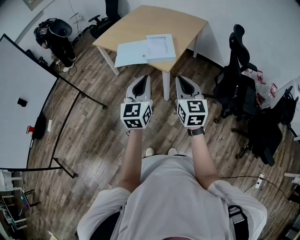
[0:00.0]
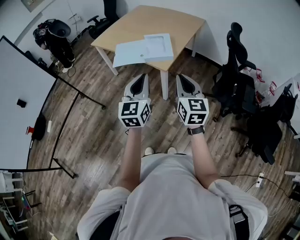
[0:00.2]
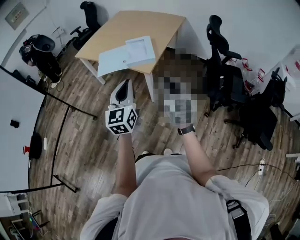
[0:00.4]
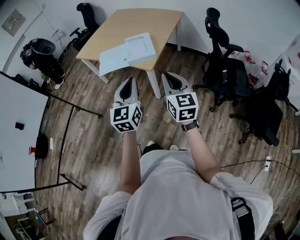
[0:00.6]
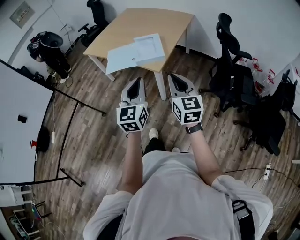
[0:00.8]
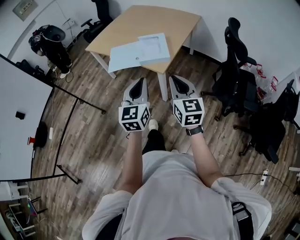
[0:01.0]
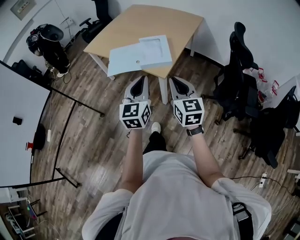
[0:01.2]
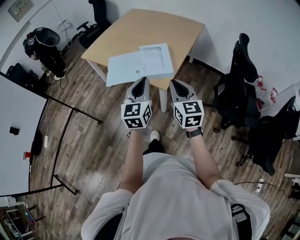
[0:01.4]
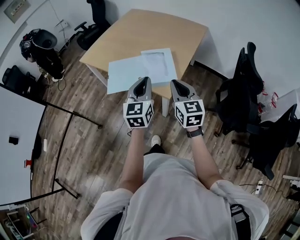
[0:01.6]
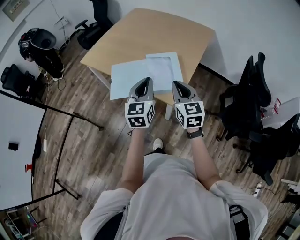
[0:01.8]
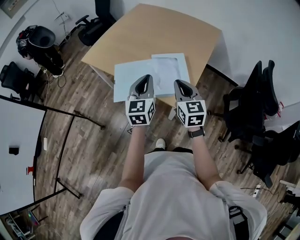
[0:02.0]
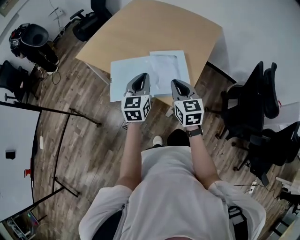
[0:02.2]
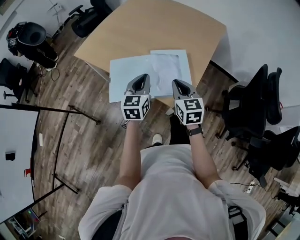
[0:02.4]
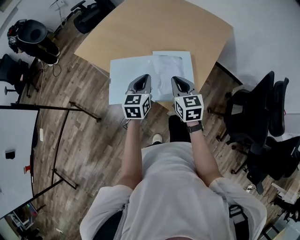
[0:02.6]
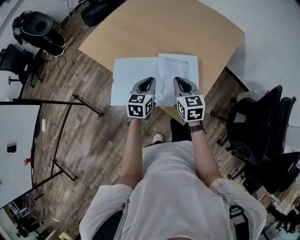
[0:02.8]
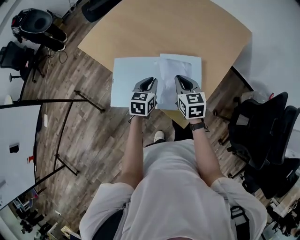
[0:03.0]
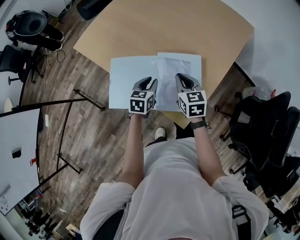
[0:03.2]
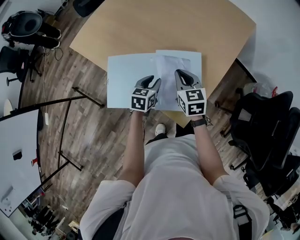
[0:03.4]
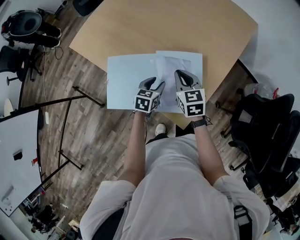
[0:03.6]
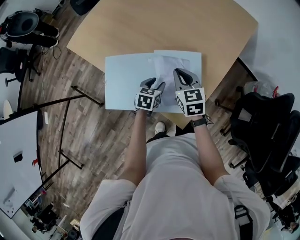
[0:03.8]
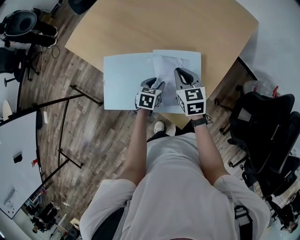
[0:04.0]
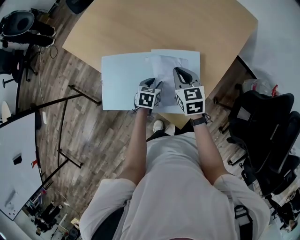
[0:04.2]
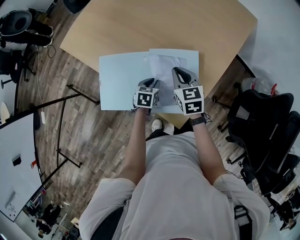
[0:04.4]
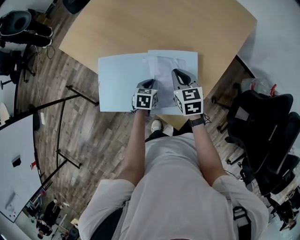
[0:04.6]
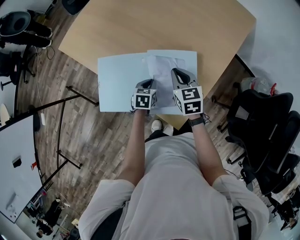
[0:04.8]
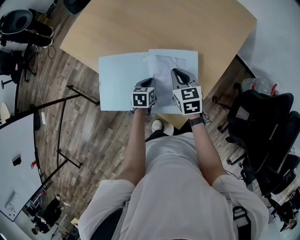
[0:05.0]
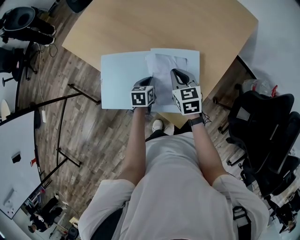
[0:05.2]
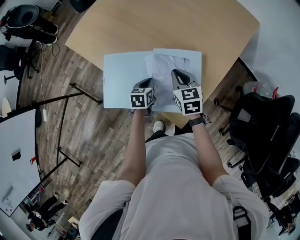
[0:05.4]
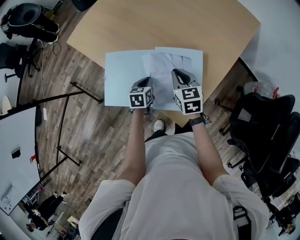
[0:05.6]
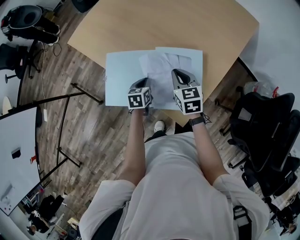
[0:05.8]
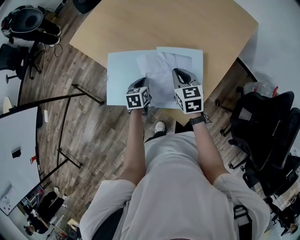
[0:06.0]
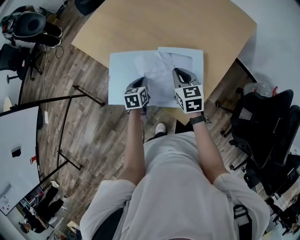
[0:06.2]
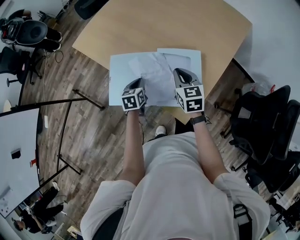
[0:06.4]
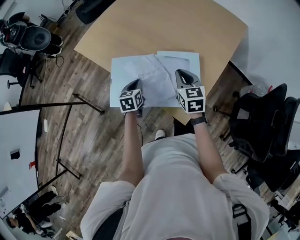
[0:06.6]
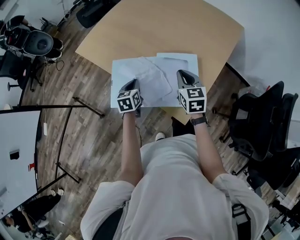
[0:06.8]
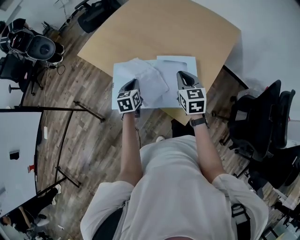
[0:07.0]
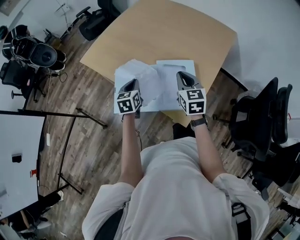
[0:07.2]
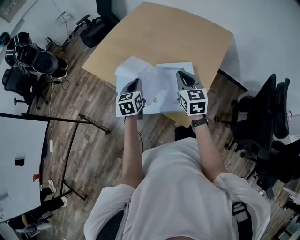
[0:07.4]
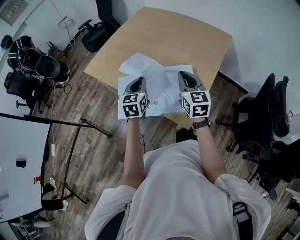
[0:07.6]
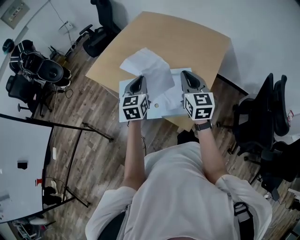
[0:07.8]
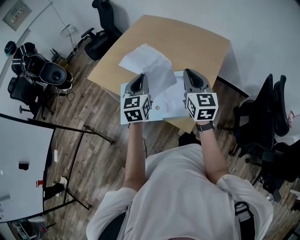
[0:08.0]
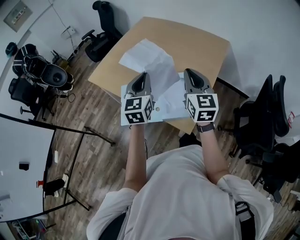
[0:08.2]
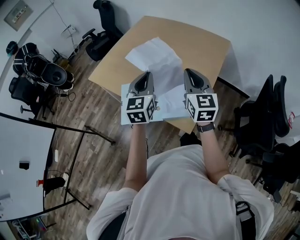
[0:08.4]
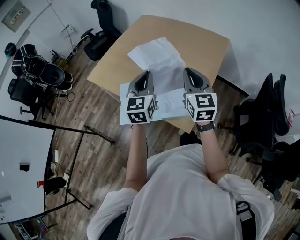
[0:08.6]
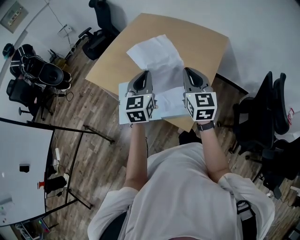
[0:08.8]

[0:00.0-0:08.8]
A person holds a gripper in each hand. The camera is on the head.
0:00.0 to 0:01.4: The two grippers go about 20 cm forward.
0:01.4 to 0:03.0: The grippers both shift forward and downward by approximately 40 cm. The left gripper angles its fingers downward, by about 30 degrees. Meanwhile the right gripper rotates roughly 20 degrees.
0:03.0 to 0:04.4: The right gripper shifts about 10 cm forward and downward, while the left gripper travels downward by approximately 15 cm, and changes its angle by some 20 degrees.
0:04.4 to 0:05.8: The left gripper shifts some 5 cm to the left, and closes its fingers.
0:05.8 to 0:07.4: The left gripper moves upward, some 20 cm, and changes its angle by about 30 degrees, while the right gripper is displaced upward and backward by about 15 cm, and swivels roughly 20 degrees.
0:07.4 to 0:08.8: The left gripper is displaced upward and to the right by roughly 15 cm, and rotates roughly 20 degrees. Meanwhile the right gripper goes approximately 10 cm upward.

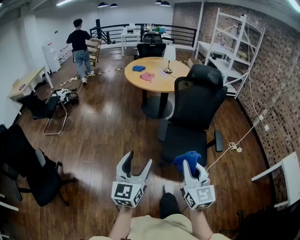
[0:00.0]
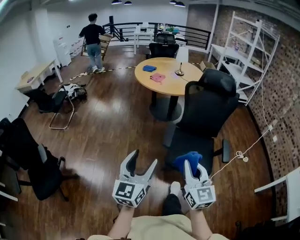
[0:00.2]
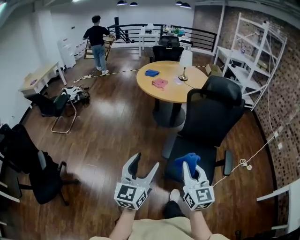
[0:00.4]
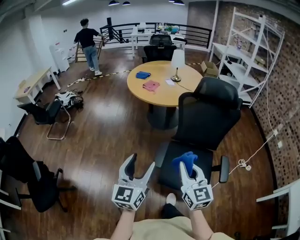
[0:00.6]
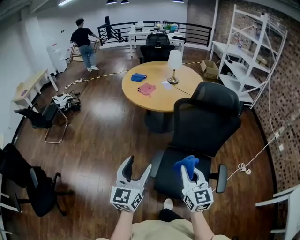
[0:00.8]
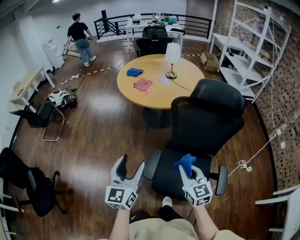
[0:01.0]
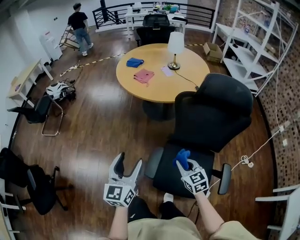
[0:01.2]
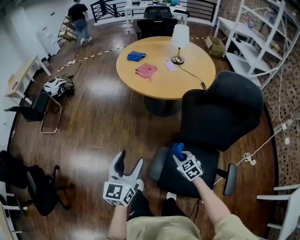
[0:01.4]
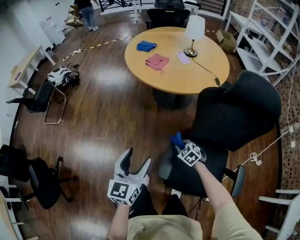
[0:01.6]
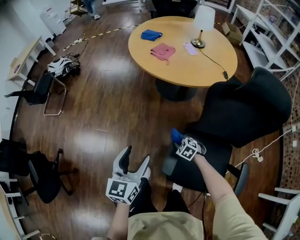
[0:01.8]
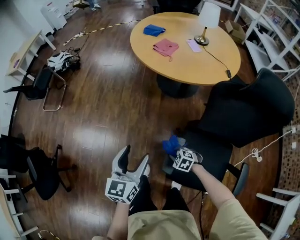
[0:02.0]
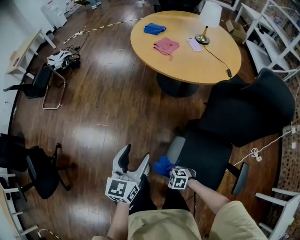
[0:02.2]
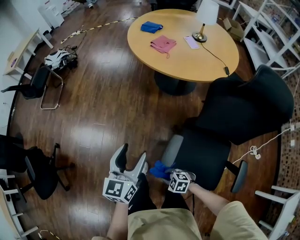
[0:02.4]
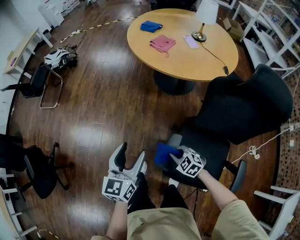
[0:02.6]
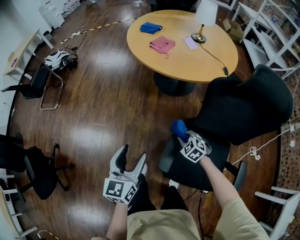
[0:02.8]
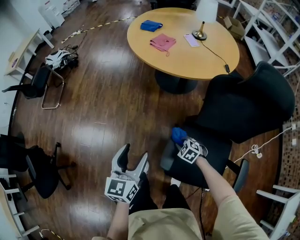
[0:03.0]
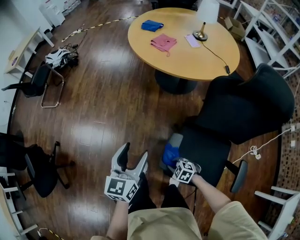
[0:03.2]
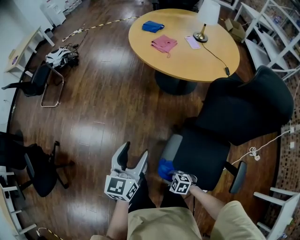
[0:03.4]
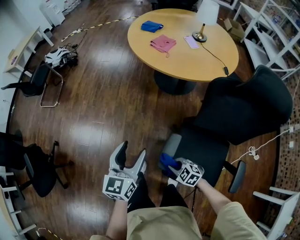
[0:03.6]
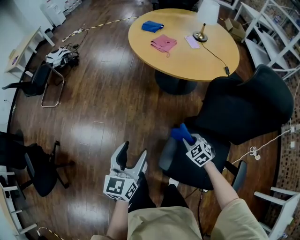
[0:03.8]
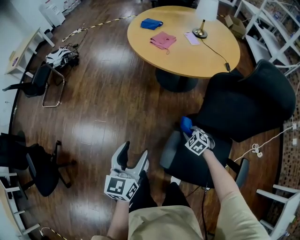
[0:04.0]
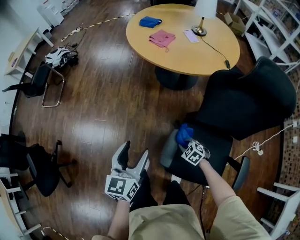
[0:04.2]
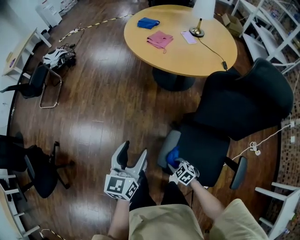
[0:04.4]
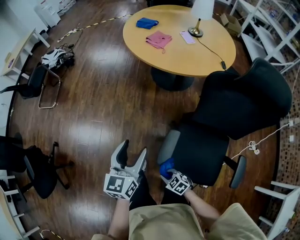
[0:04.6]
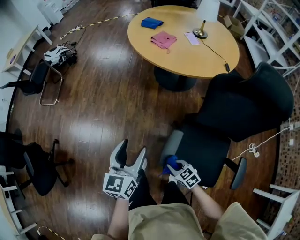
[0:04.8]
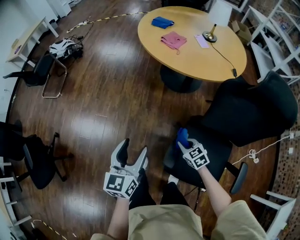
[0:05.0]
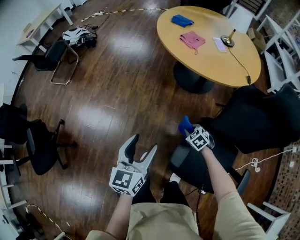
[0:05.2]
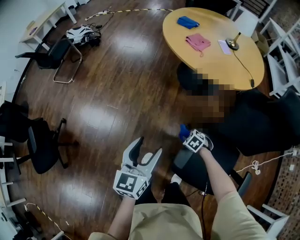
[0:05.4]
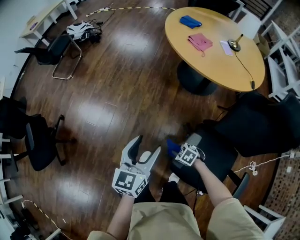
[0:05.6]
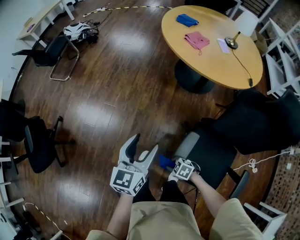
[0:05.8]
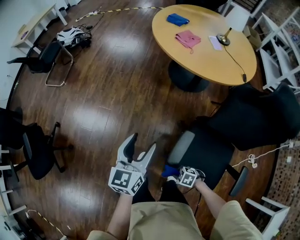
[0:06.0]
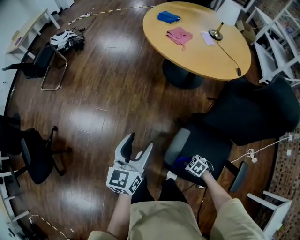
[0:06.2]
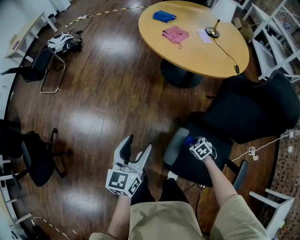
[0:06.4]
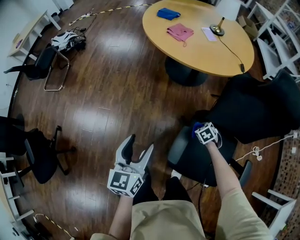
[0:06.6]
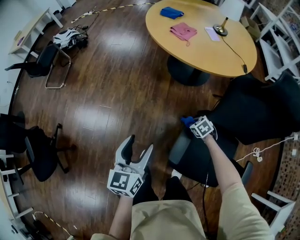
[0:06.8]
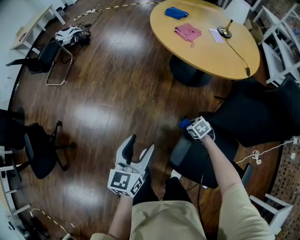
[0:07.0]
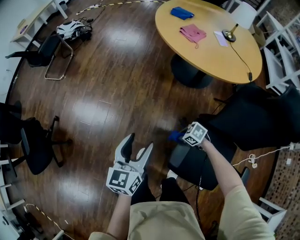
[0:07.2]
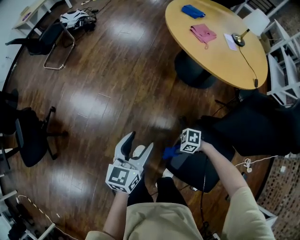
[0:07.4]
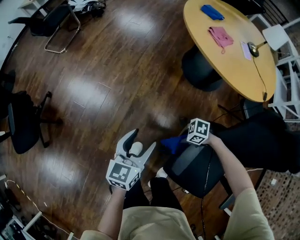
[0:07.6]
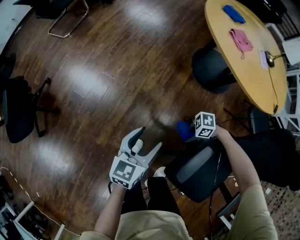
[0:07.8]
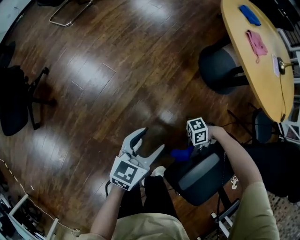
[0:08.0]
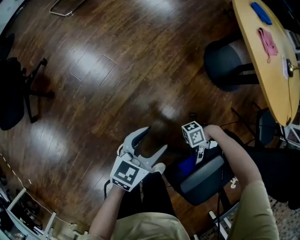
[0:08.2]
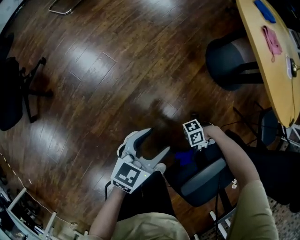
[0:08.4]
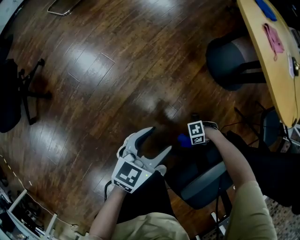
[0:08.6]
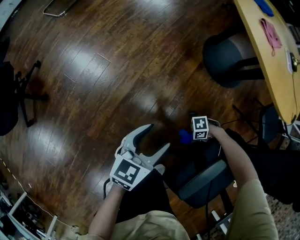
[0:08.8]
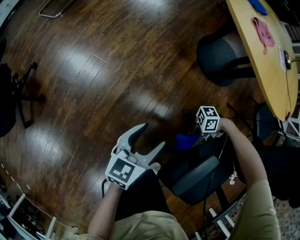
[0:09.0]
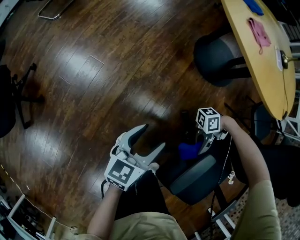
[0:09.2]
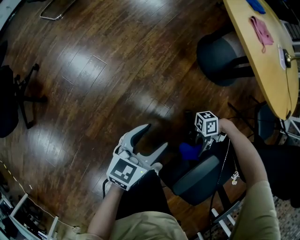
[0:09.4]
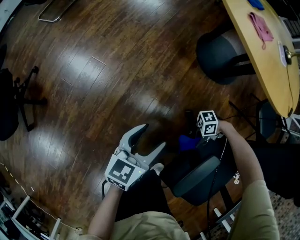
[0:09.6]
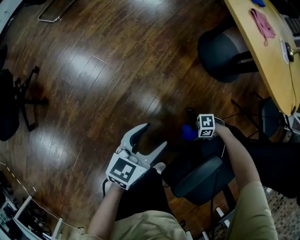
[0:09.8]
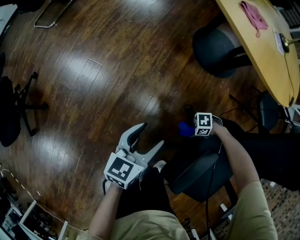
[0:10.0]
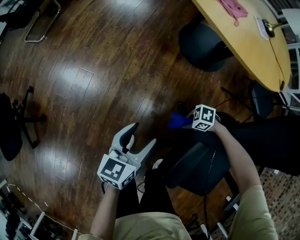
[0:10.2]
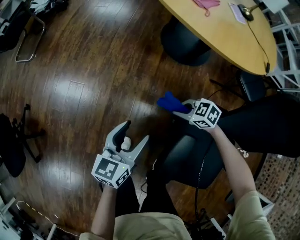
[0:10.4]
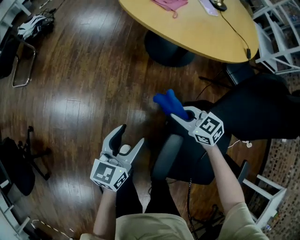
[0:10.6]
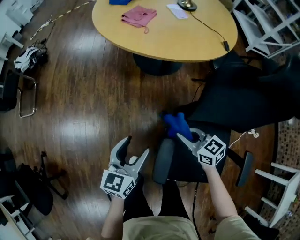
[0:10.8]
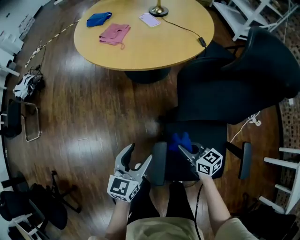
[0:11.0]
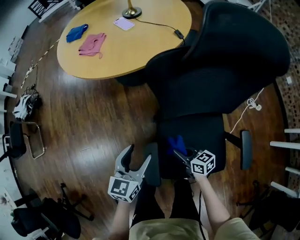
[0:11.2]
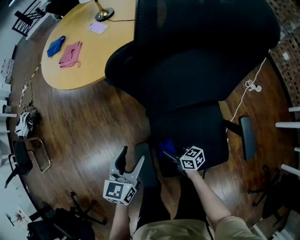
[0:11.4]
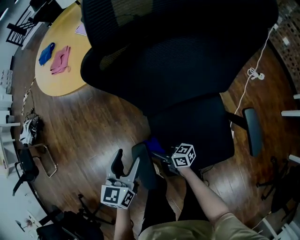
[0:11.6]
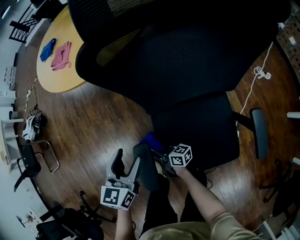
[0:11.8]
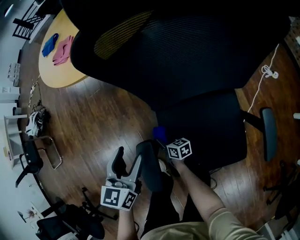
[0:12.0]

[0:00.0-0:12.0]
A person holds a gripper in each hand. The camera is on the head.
0:00.0 to 0:01.6: The pair of grippers is taken forward, about 50 cm. The right gripper goes about 40 cm downward, and points its fingers approximately 50 degrees further downward.
0:01.6 to 0:03.0: The left gripper changes place by roughly 5 cm, while the right gripper moves up and down over roughly 10 cm, changing direction 2 times.
0:03.0 to 0:04.4: The right gripper reaches about 10 cm upward, then returns.
0:04.4 to 0:06.0: The right gripper moves about 10 cm upward and comes back, and changes its angle by some 30 degrees; the left gripper changes place by roughly 5 cm.
0:06.0 to 0:07.6: The right gripper changes its angle by roughly 20 degrees; the left gripper goes about 10 cm downward.
0:07.6 to 0:09.0: The left gripper heads downward, covering roughly 15 cm. The right gripper is displaced downward by about 10 cm, and tilts its fingers some 40 degrees upward.
0:09.0 to 0:10.4: The left gripper heads upward, covering approximately 5 cm; the right gripper goes up and down, roughly 20 cm each way, reversing 2 times, and angles its fingers downward, by roughly 40 degrees.
0:10.4 to 0:12.0: The right gripper ends up roughly 20 cm from where it was, and rotates about 90 degrees, while the left gripper ends up about 25 cm from where it was, and swivels about 30 degrees.

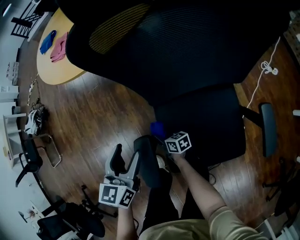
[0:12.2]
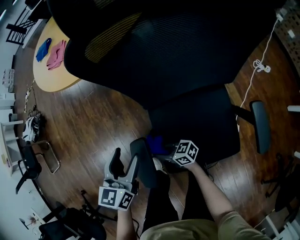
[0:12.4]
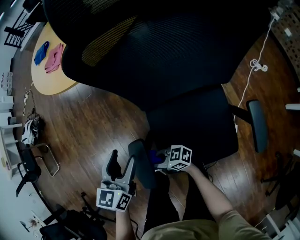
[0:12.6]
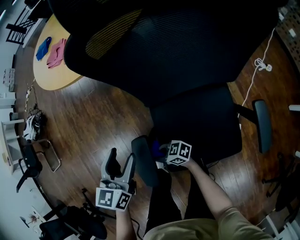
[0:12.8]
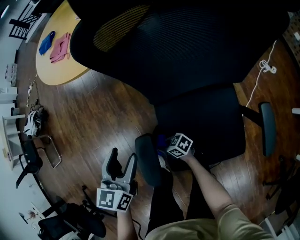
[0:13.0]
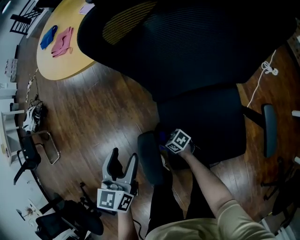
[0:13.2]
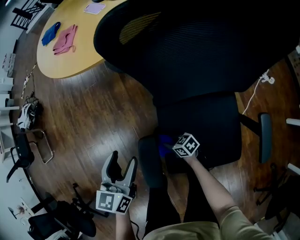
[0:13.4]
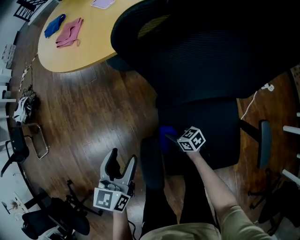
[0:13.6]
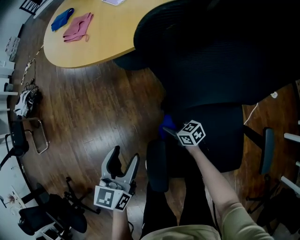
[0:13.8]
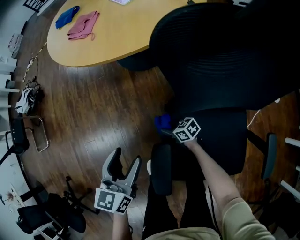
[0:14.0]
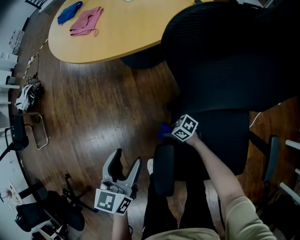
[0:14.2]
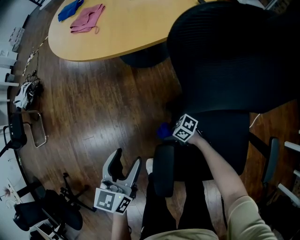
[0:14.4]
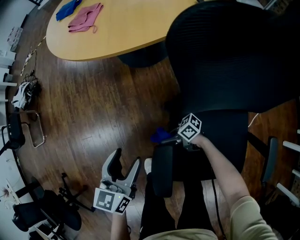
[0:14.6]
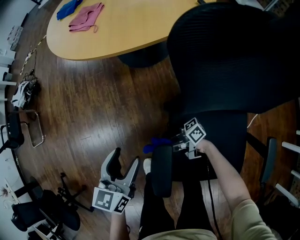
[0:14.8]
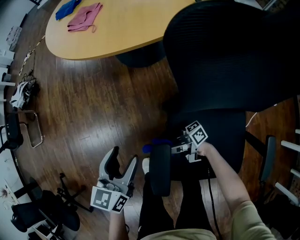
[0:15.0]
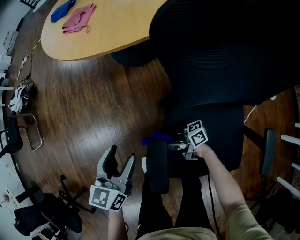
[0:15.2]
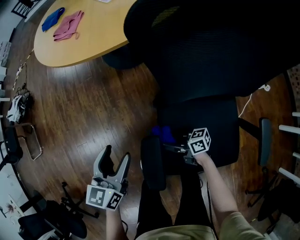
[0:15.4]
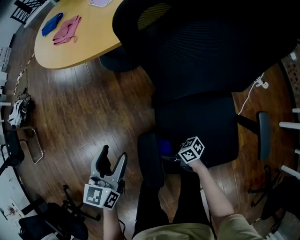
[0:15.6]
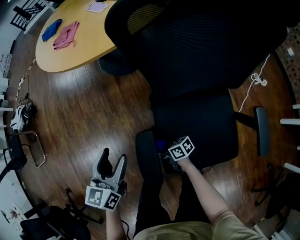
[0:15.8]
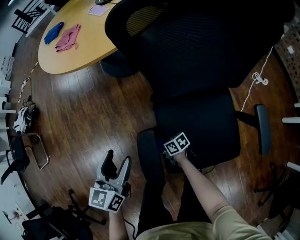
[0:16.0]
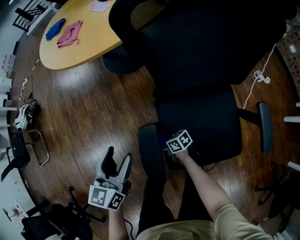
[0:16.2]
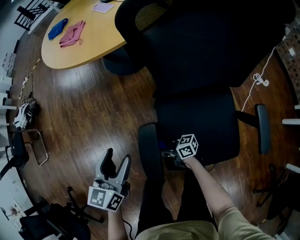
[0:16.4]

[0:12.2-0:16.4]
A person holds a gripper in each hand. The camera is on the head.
0:12.2 to 0:13.6: The right gripper goes up and down, approximately 15 cm each way, reversing 2 times, and swivels some 20 degrees. The left gripper changes place by some 5 cm.
0:13.6 to 0:15.0: The right gripper goes roughly 10 cm upward, and tilts its fingers about 50 degrees upward. Meanwhile the left gripper shifts by about 5 cm.
0:15.0 to 0:16.4: The right gripper goes some 10 cm backward and downward, and changes its angle by about 40 degrees; the left gripper is displaced backward by some 5 cm.
